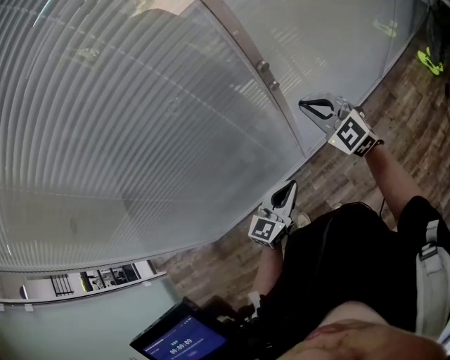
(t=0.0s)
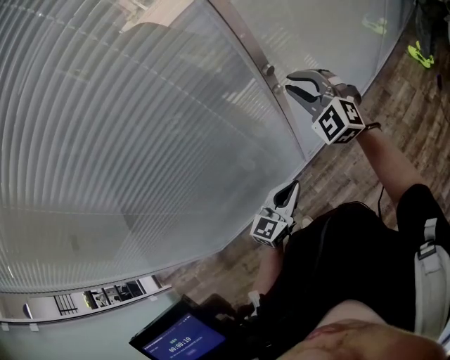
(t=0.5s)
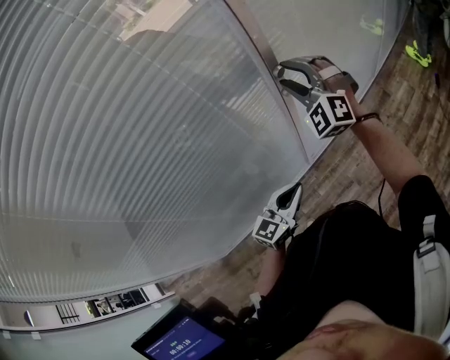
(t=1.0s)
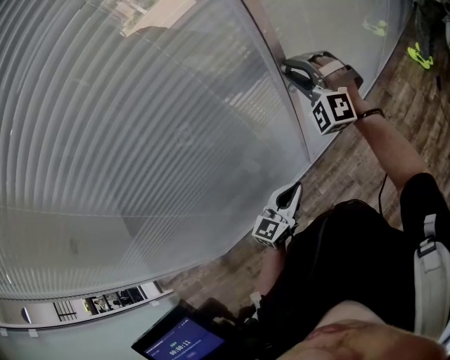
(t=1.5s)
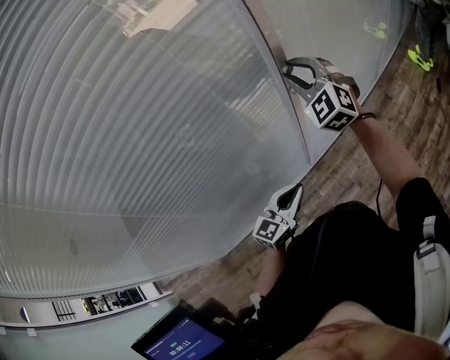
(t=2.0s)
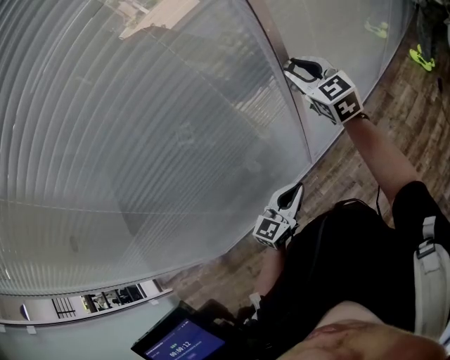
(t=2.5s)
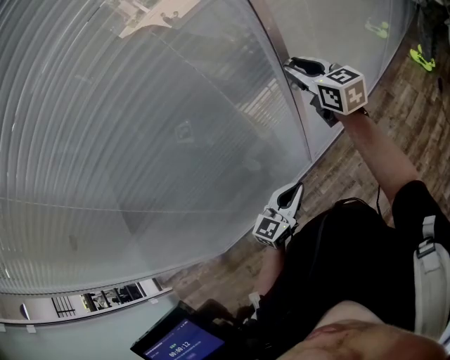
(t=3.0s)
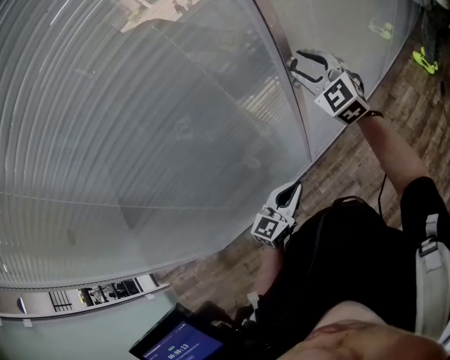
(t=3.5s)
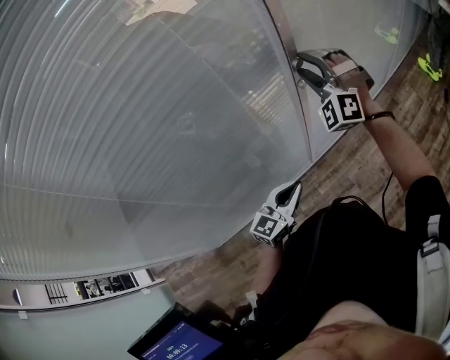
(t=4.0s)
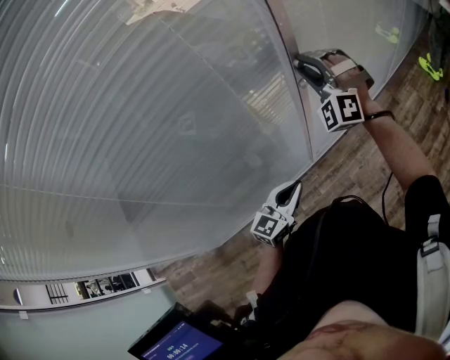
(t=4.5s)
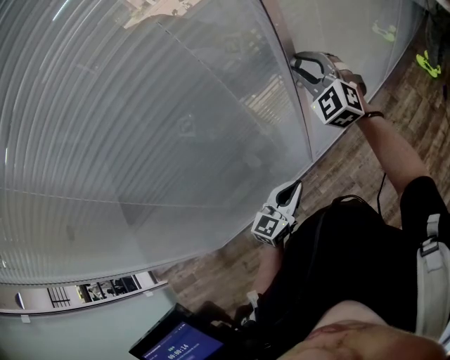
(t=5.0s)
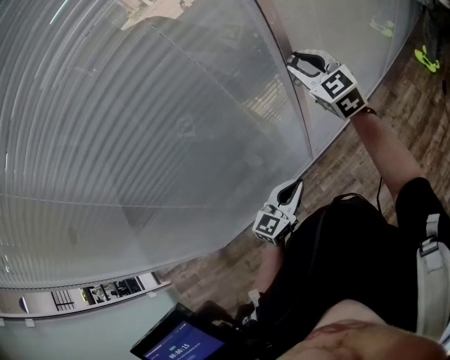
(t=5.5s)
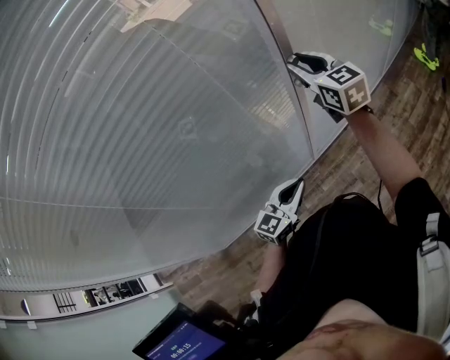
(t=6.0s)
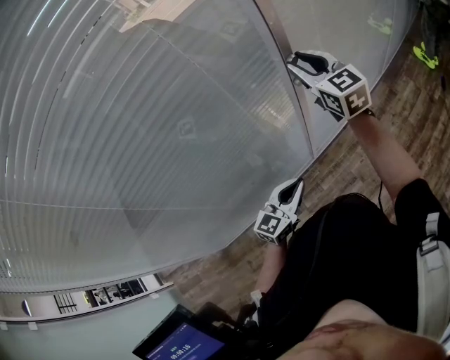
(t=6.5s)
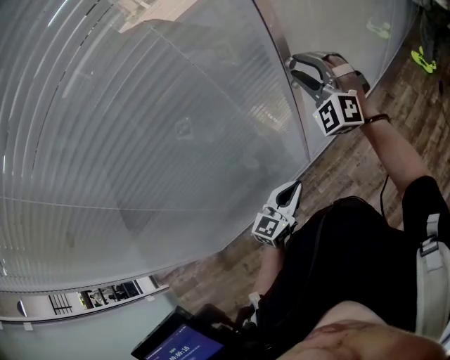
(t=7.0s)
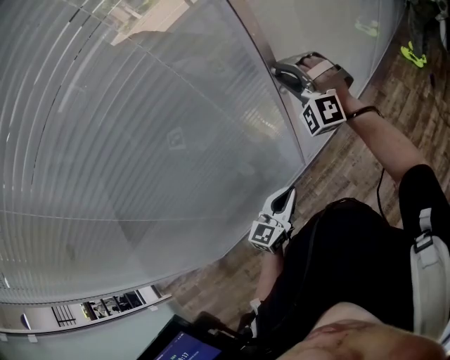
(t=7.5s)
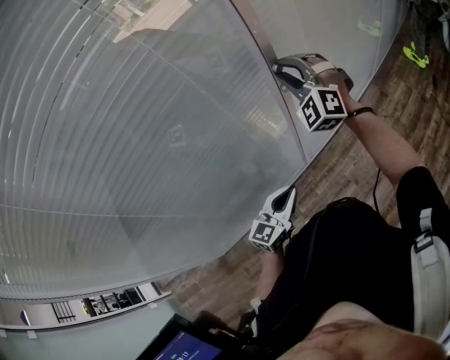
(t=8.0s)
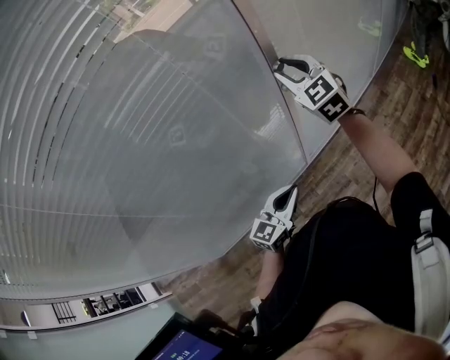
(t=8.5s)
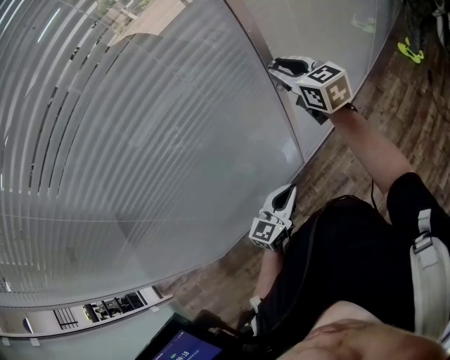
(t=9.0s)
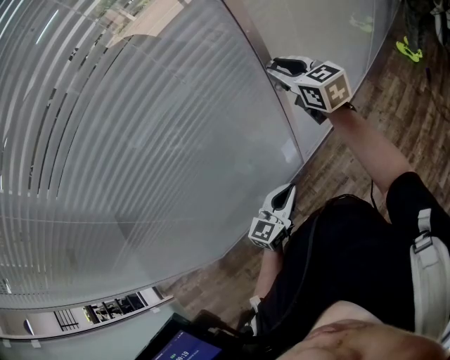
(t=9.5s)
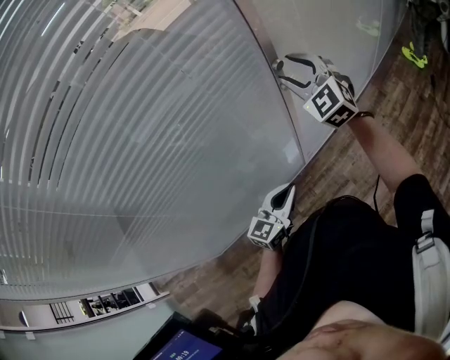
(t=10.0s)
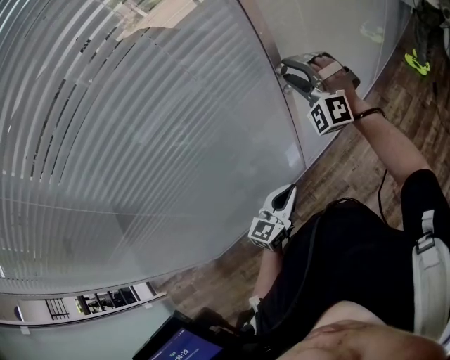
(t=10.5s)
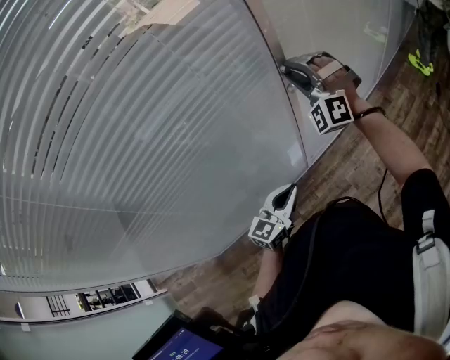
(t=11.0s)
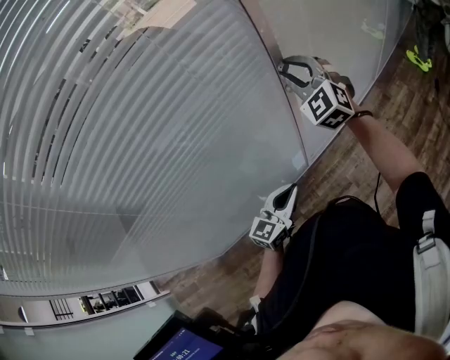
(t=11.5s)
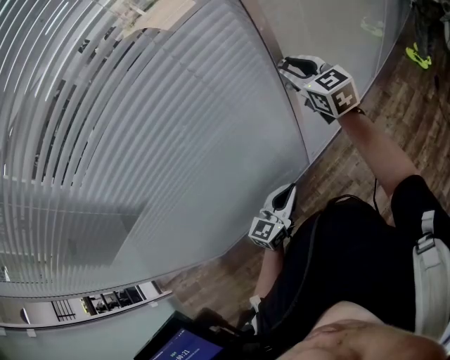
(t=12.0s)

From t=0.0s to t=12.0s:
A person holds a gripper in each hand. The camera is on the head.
From t=0.0s to t=2.0s: The left gripper travels to the left by about 5 cm. The right gripper shifts about 15 cm forward, upward and to the left, changes its angle by some 30 degrees, and opens up.
From t=2.0s to t=4.0s: The right gripper rotates about 30 degrees.
From t=4.0s to t=6.0s: The right gripper rotates around the line of its fingers by some 80 degrees, clockwise from behind.
From t=6.0s to t=8.0s: The right gripper twists some 60 degrees counterclockwise, seen from behind.
From t=8.0s to t=10.0s: The right gripper swivels some 20 degrees, and opens up.
From t=10.0s to t=12.0s: The right gripper changes its angle by some 40 degrees, and closes its fingers.

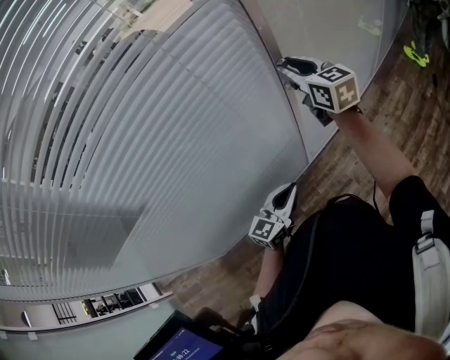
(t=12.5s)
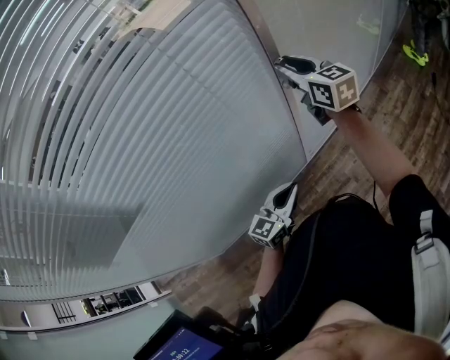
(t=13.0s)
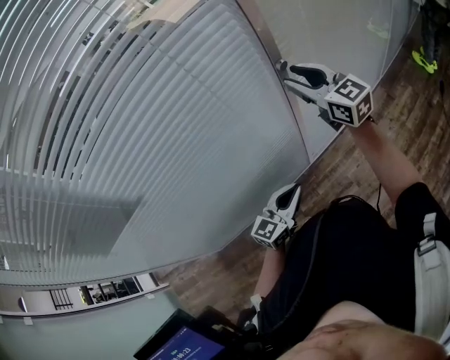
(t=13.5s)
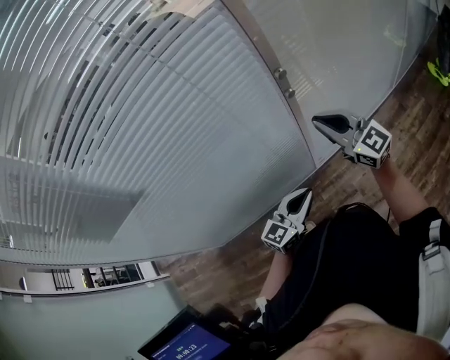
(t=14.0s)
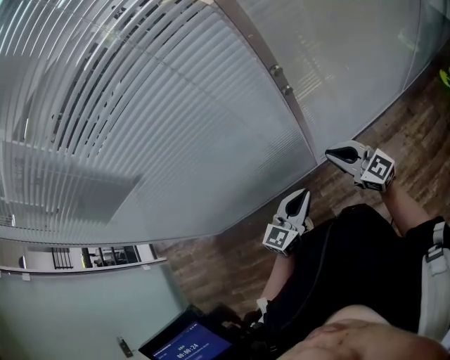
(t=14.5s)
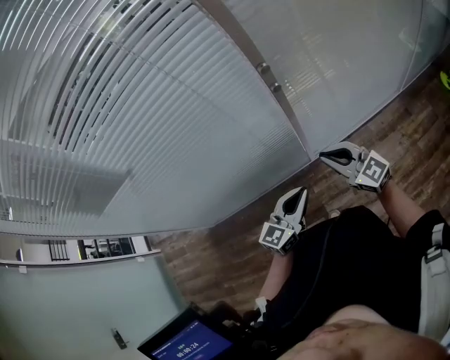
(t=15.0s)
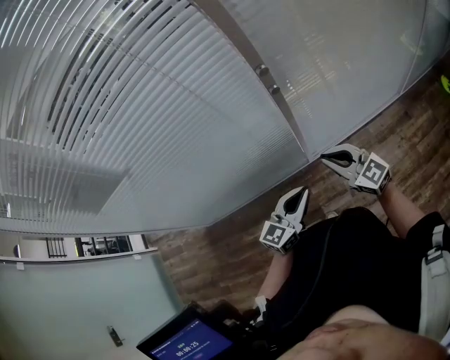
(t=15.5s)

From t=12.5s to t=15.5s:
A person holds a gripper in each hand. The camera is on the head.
From t=12.5s to t=14.0s: The right gripper is displaced backward and downward by approximately 15 cm, turns by approximately 30 degrees, and closes. The left gripper goes about 10 cm to the right.
From t=14.0s to t=15.5s: The right gripper goes roughly 15 cm downward and backward; the left gripper goes some 5 cm to the right.

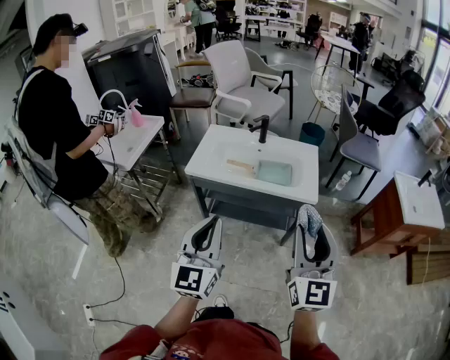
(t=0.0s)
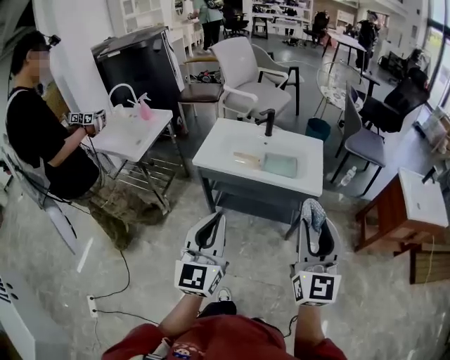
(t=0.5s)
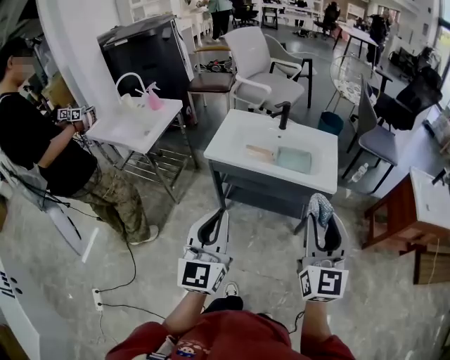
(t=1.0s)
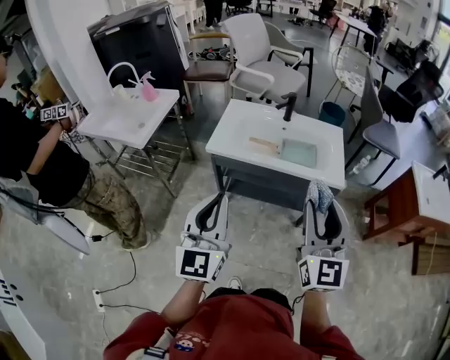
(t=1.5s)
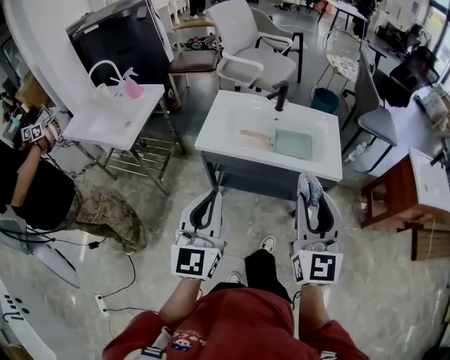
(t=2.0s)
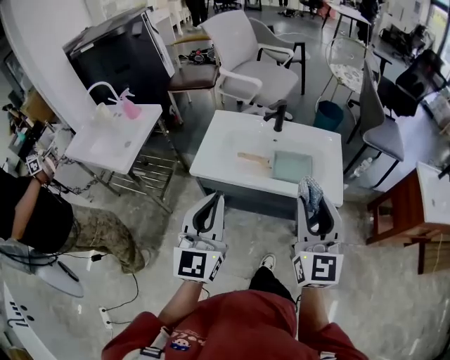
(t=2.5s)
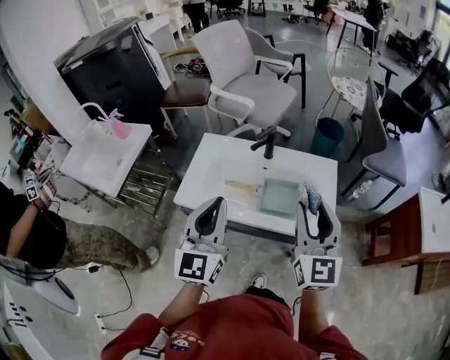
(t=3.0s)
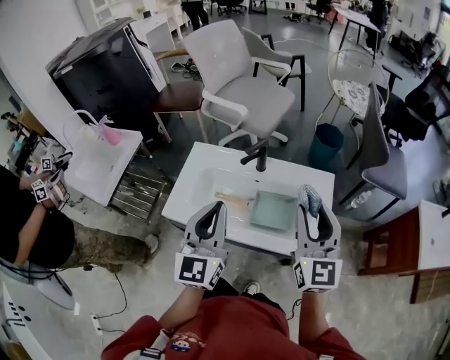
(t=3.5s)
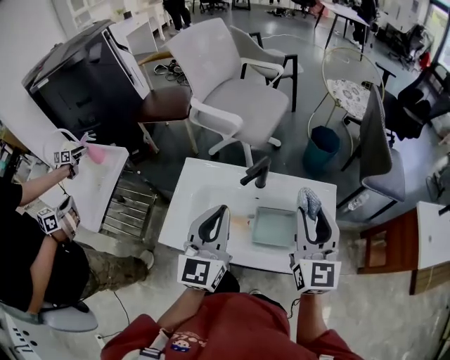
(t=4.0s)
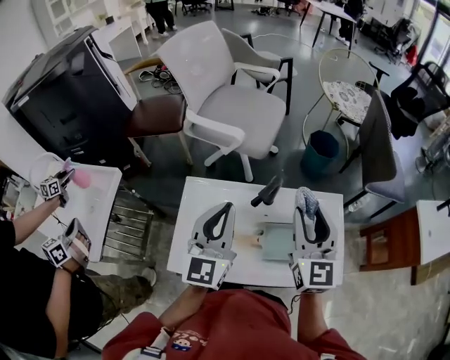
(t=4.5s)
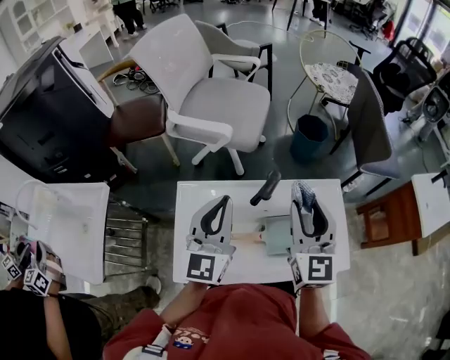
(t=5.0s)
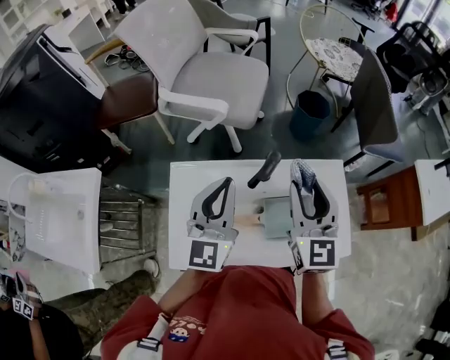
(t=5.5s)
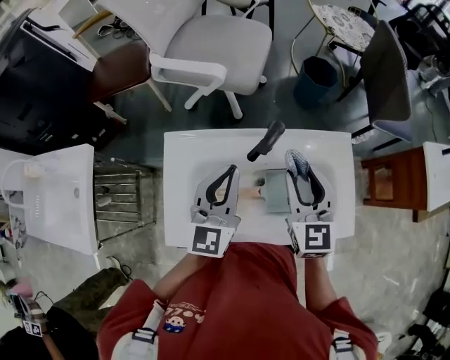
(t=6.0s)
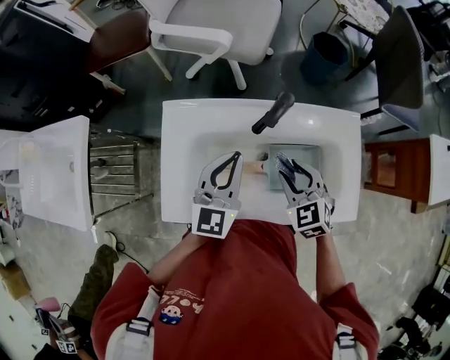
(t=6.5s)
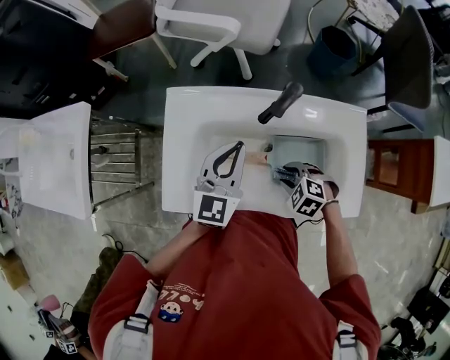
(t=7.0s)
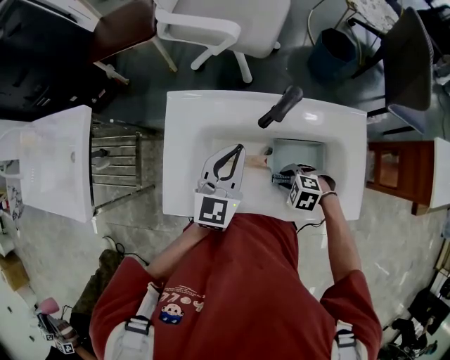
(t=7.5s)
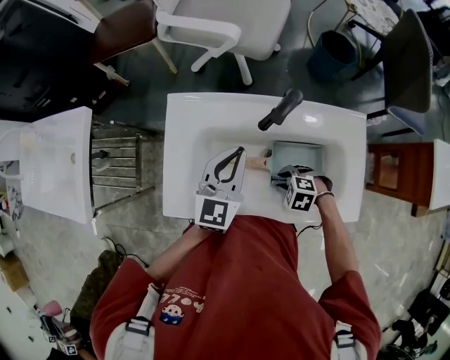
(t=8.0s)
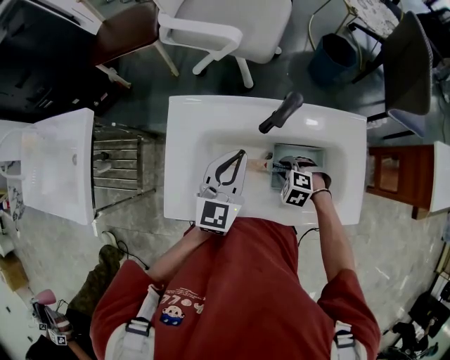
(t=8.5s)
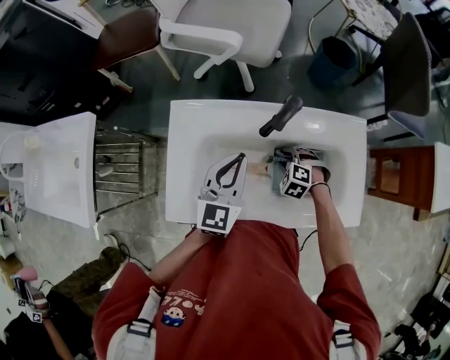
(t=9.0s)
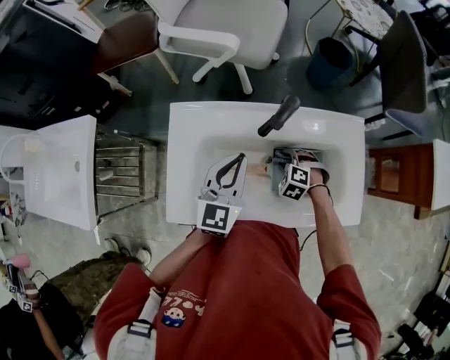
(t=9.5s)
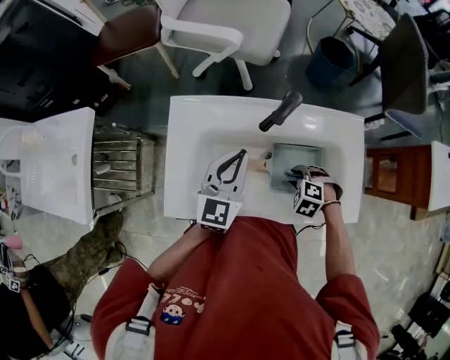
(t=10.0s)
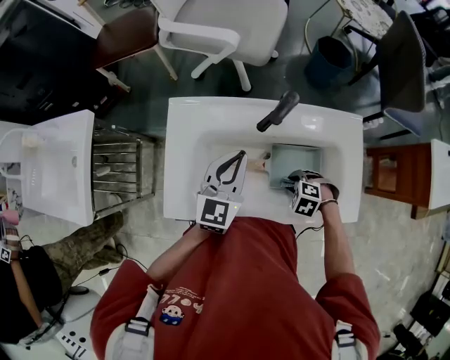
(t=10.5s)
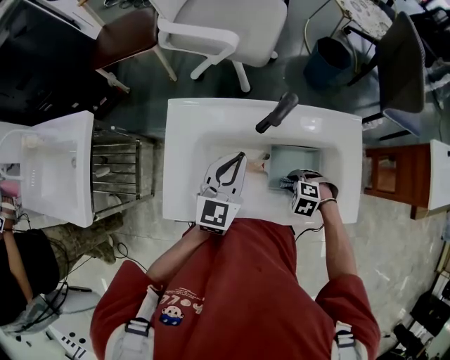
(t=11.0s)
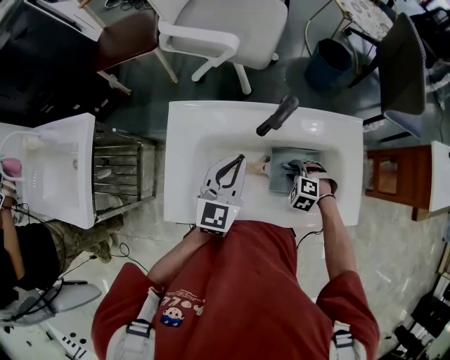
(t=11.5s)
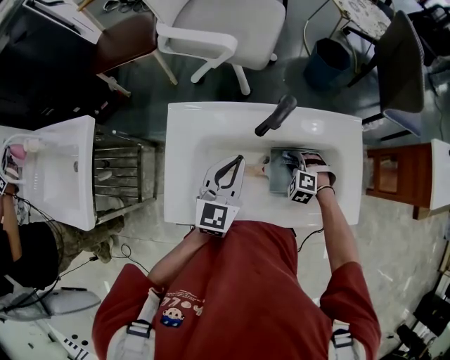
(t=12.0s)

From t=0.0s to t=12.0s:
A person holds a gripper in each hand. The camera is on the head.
From t=0.0s to t=2.0s: Both grippers move to the left and forward, about 10 cm.
From t=2.0s to t=4.0s: The pair of grippers is taken forward, roughly 40 cm.
From t=4.0s to t=6.0s: The right gripper is displaced downward, to the left and forward by roughly 15 cm, while the left gripper moves downward and forward, roughly 15 cm.
From t=6.0s to t=8.0s: The left gripper moves downward, approximately 5 cm. The right gripper moves downward, approximately 30 cm, and angles its fingers downward, by approximately 60 degrees.
From t=10.0s to t=12.0s: The right gripper shifts by some 10 cm.
